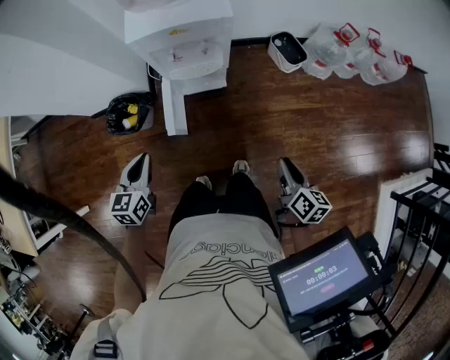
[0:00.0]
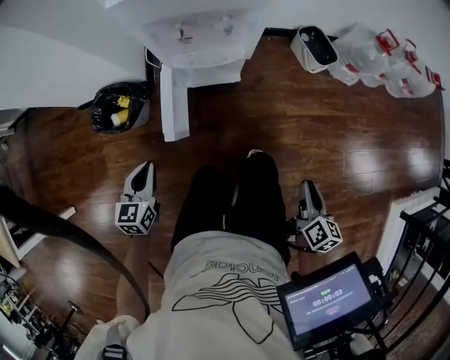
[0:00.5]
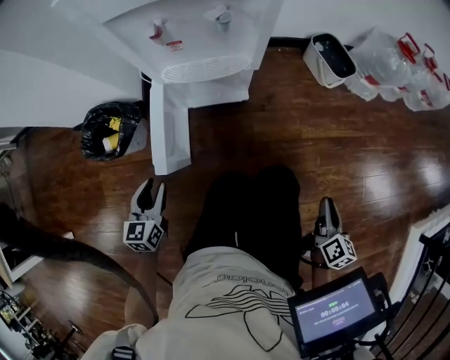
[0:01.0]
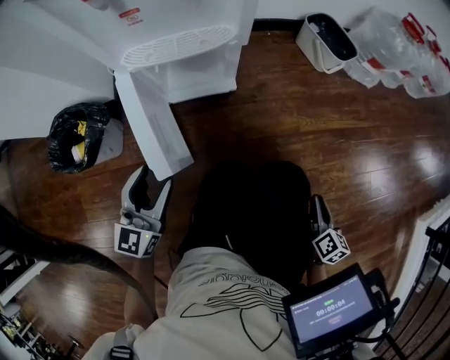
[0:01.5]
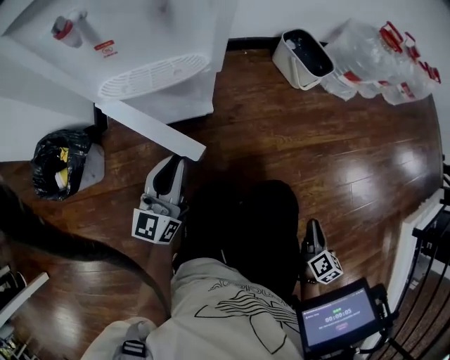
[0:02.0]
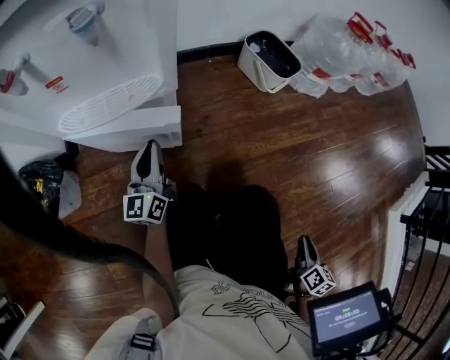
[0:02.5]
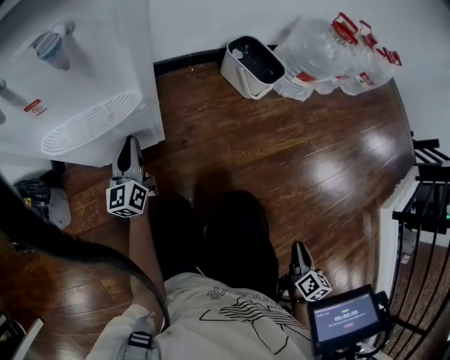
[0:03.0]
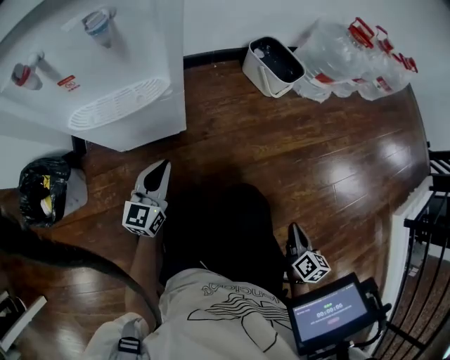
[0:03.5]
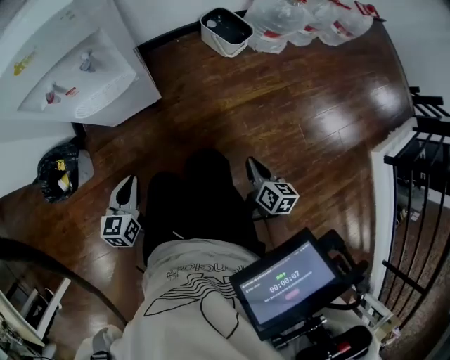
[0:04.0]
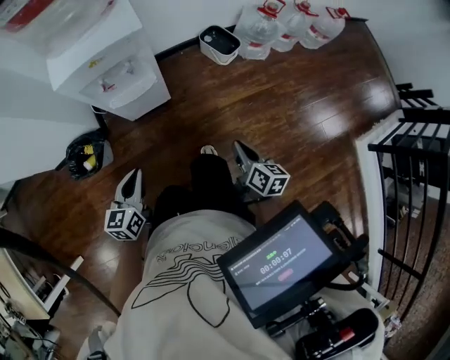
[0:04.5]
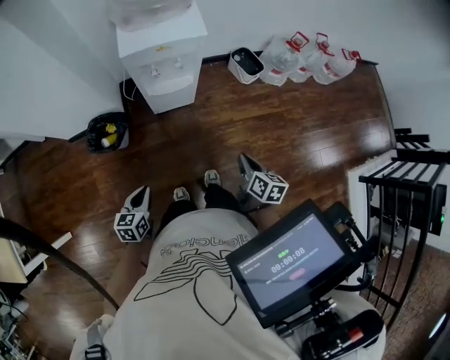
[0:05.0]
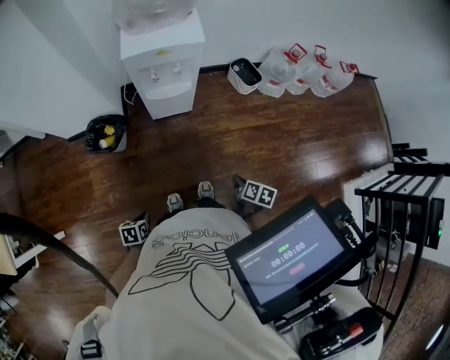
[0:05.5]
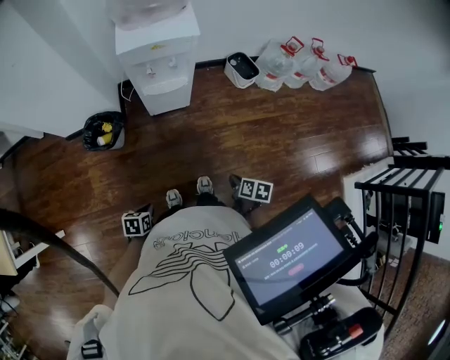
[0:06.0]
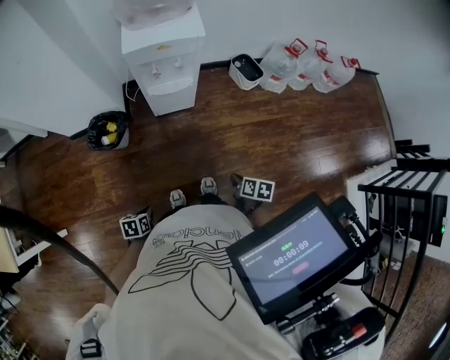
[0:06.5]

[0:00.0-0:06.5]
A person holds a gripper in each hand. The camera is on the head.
0:00.0 to 0:02.0: The left gripper shifts about 40 cm downward and forward, tips its fingers upward by roughly 30 degrees, and opens, then closes once more. Meanwhile the right gripper travels downward by approximately 40 cm, and rotates about 20 degrees.
0:02.0 to 0:04.5: The right gripper travels upward by about 40 cm, and closes. The left gripper heads upward and backward, covering about 35 cm, and turns by some 30 degrees.
0:04.5 to 0:06.5: The left gripper shifts roughly 30 cm backward and downward, and points its fingers about 40 degrees further downward. The right gripper travels backward and to the left by approximately 15 cm, and swivels some 30 degrees.

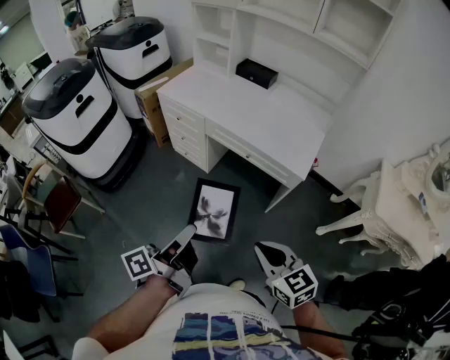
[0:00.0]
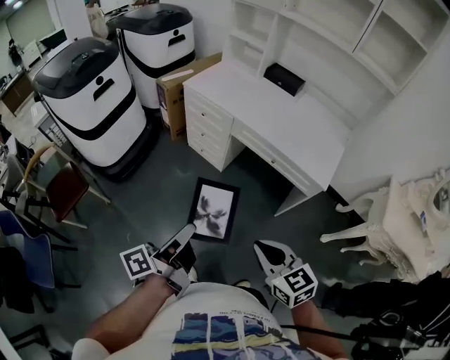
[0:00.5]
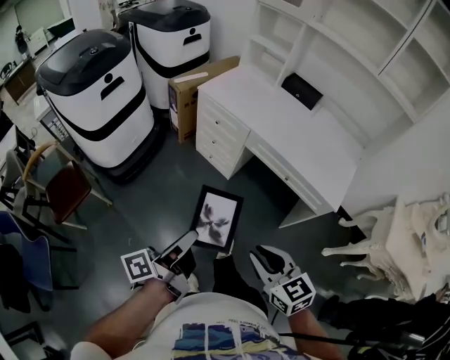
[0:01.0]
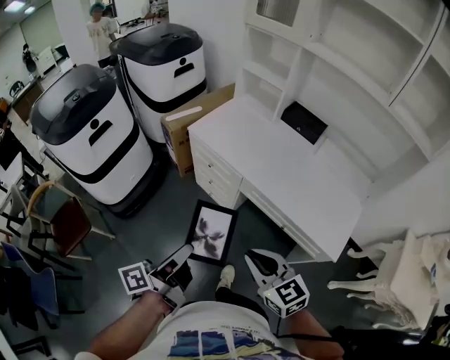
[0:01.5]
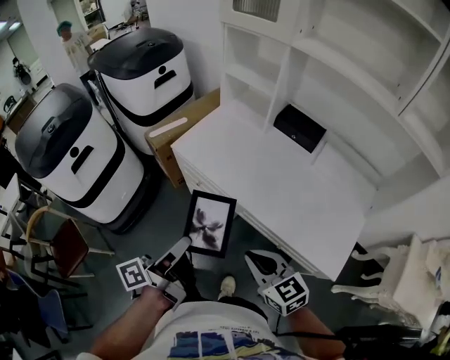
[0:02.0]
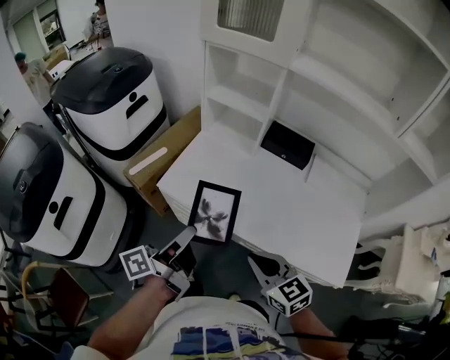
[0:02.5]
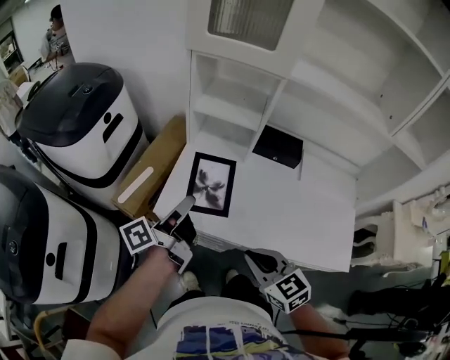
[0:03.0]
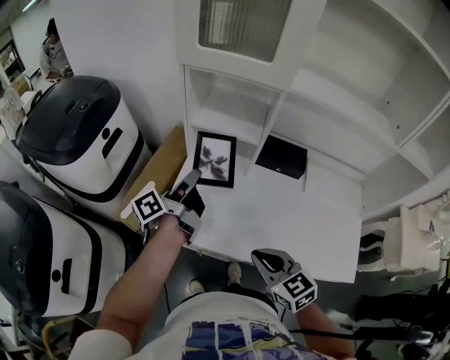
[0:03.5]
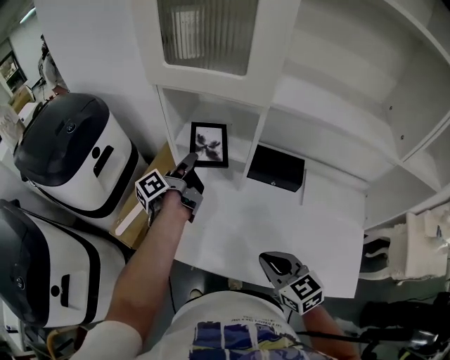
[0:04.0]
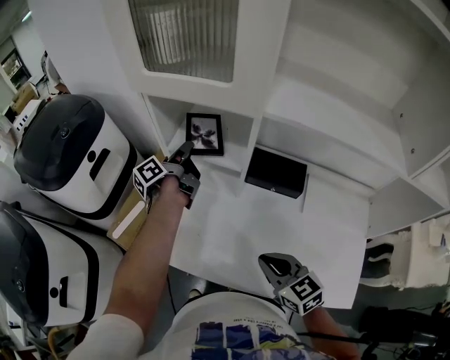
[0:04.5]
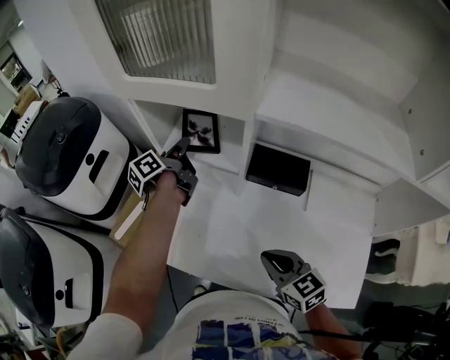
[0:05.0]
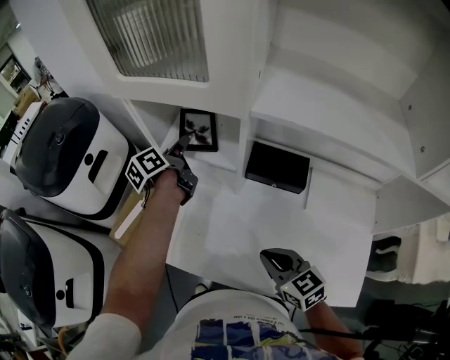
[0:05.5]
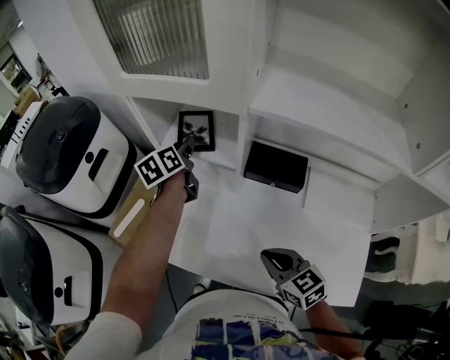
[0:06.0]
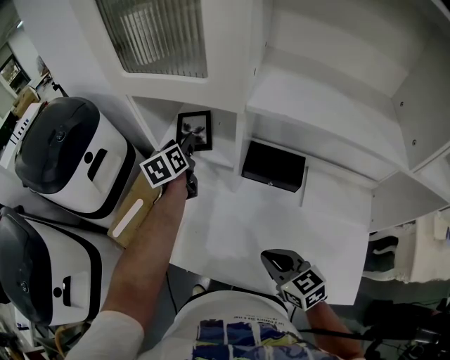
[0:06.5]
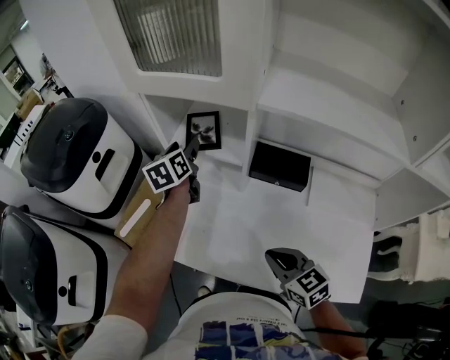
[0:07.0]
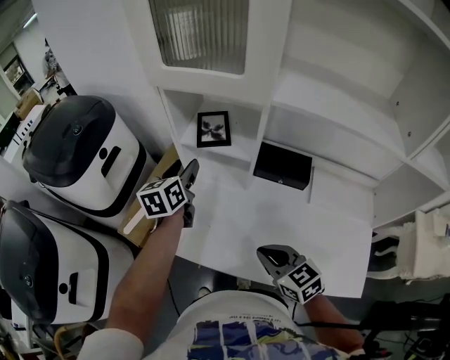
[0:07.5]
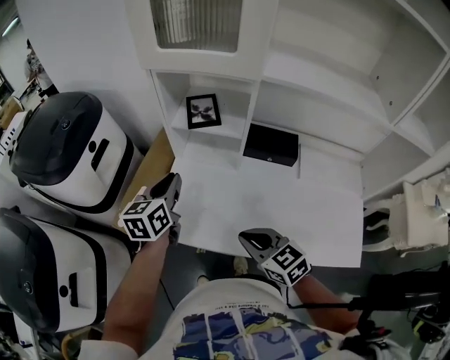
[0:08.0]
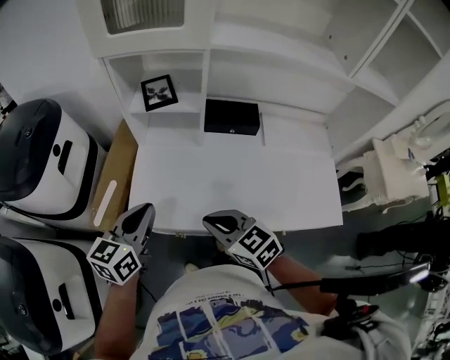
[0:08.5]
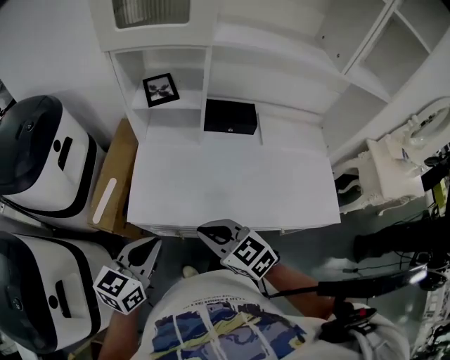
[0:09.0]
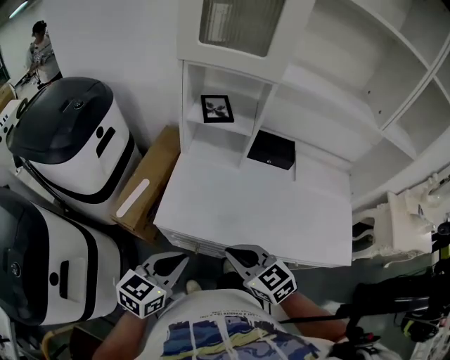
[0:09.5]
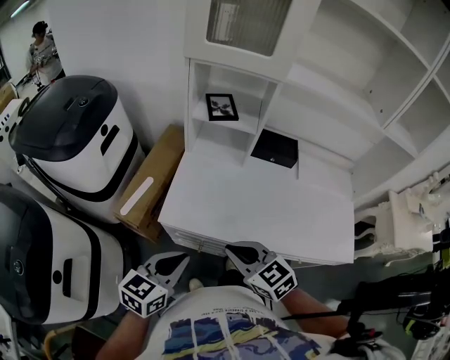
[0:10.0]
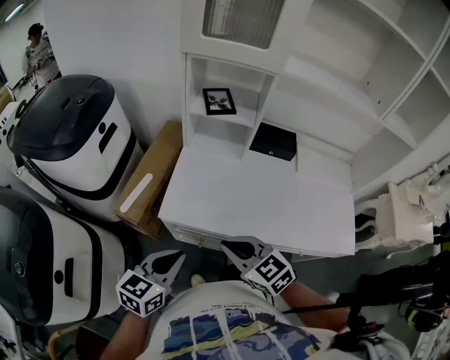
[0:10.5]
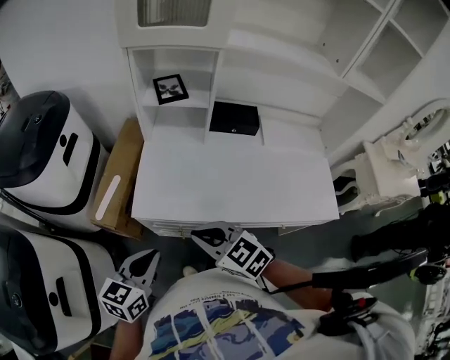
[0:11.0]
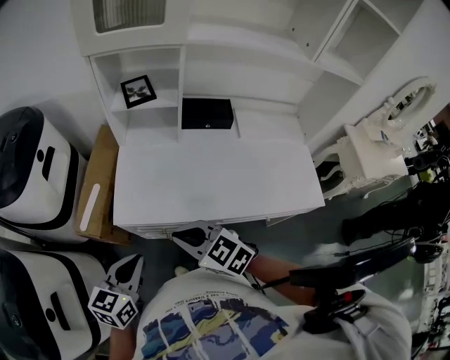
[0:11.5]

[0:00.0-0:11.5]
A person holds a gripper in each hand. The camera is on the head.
0:00.0 to 0:02.0: Both grippers move forward, some 40 cm.
0:02.0 to 0:04.0: The left gripper goes some 60 cm forward; the right gripper moves forward, approximately 30 cm, and rotates approximately 20 degrees.
0:04.0 to 0:06.0: The left gripper shifts some 10 cm forward, rolls clockwise, seen from behind, by about 40 degrees, and opens up; the right gripper goes roughly 5 cm to the right.
0:06.0 to 0:07.5: The left gripper shifts about 10 cm backward and to the left. Meanwhile the right gripper moves to the left, roughly 5 cm.
0:07.5 to 0:09.5: The left gripper travels backward by about 35 cm, changes its angle by roughly 40 degrees, and closes its fingers, while the right gripper heads to the left and backward, covering approximately 20 cm.
0:09.5 to 0:11.5: The grippers stay close to where they were, moving slightly.

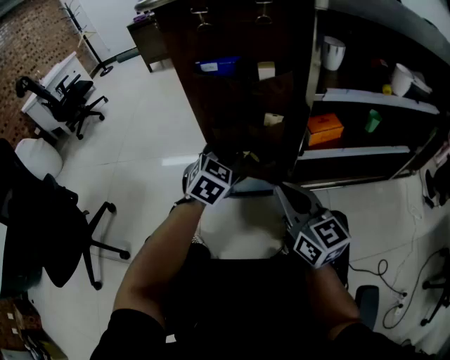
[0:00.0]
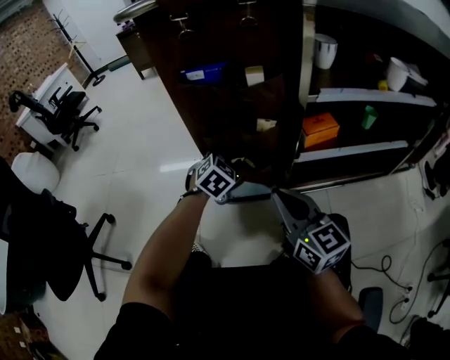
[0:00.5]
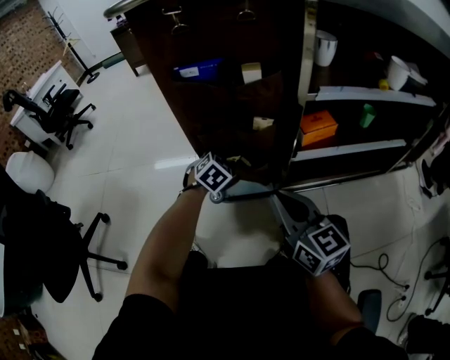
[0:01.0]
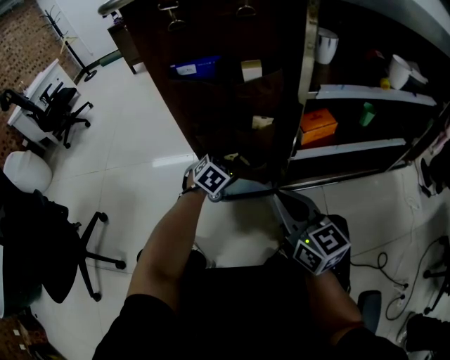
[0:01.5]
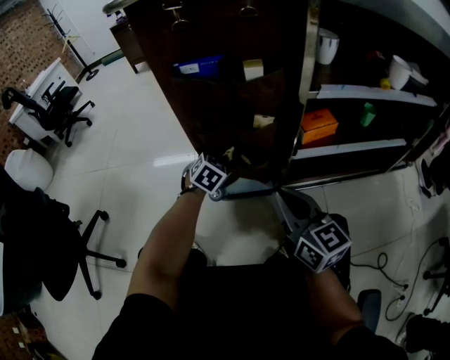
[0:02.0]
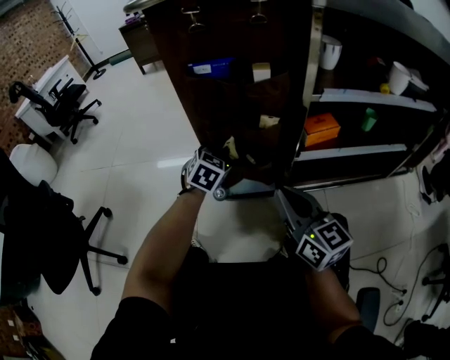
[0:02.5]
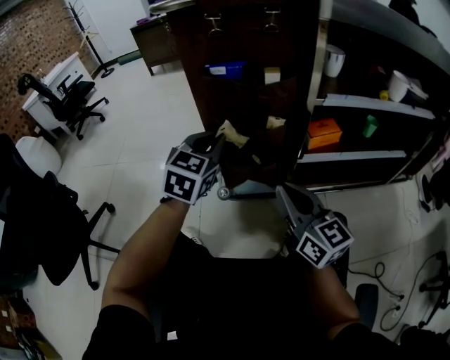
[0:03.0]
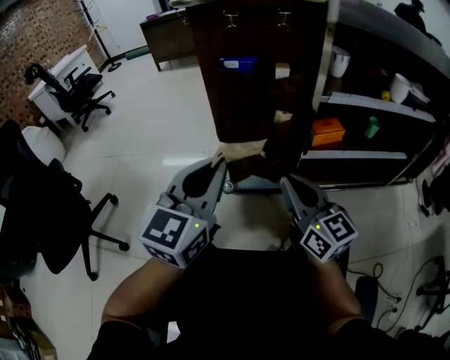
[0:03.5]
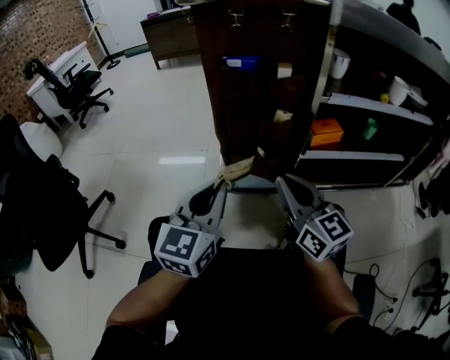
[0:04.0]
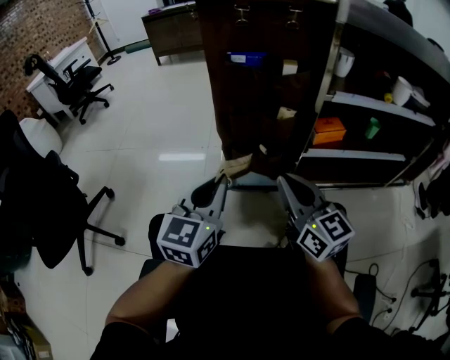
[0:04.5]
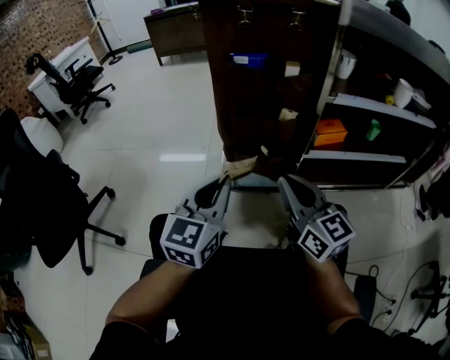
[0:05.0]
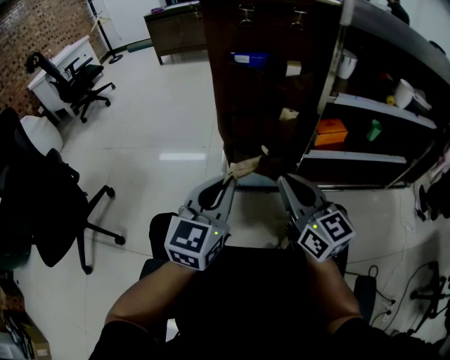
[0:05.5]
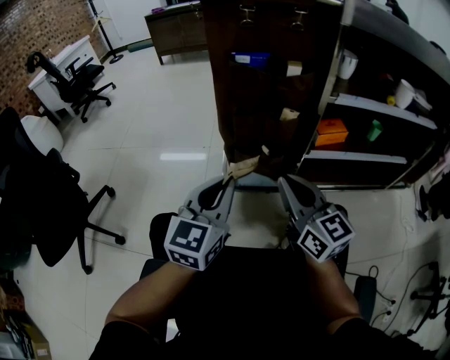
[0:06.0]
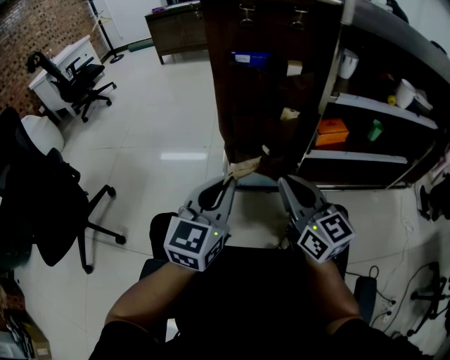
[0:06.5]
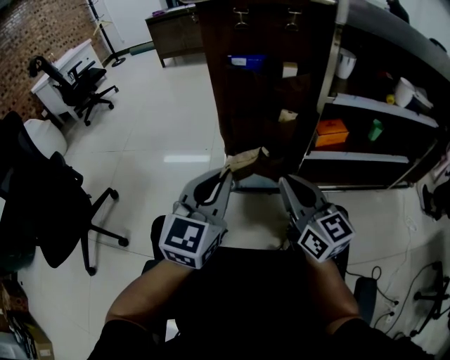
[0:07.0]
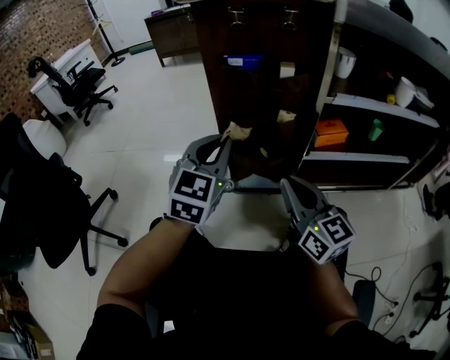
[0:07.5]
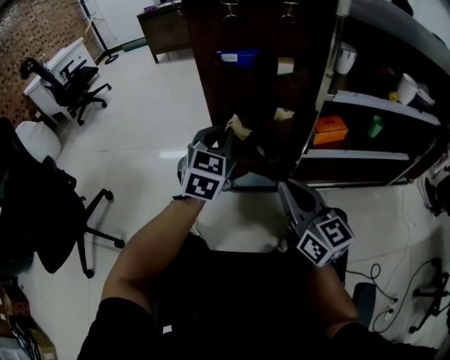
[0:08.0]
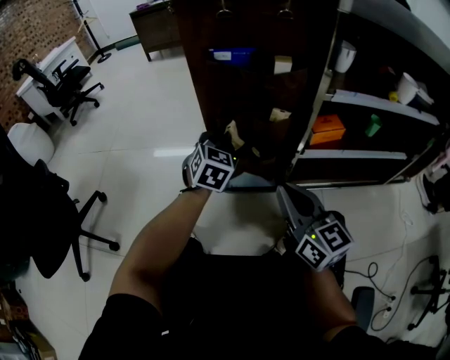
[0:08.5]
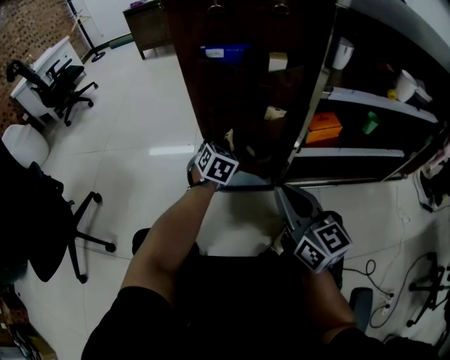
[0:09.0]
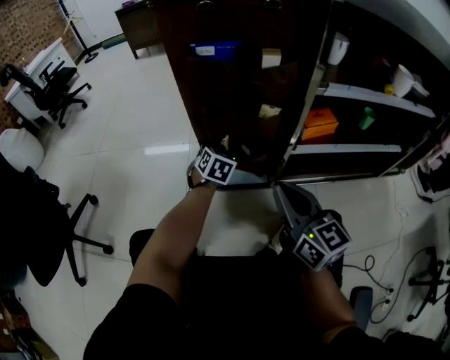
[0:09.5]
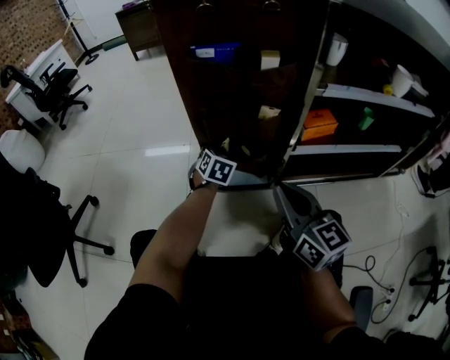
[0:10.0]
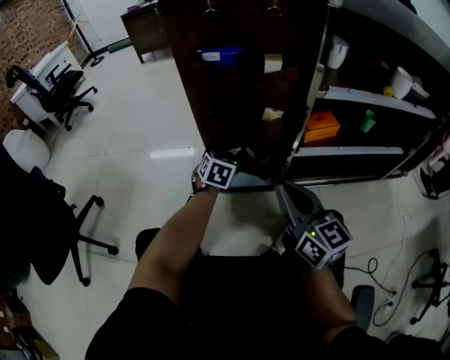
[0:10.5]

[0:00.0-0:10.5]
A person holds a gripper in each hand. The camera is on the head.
0:00.0 to 0:02.0: The left gripper goes about 15 cm downward and forward, and closes.
0:02.0 to 0:04.0: The right gripper goes about 5 cm upward. The left gripper goes some 35 cm backward and upward, and tips its fingers upward by about 40 degrees.
0:04.0 to 0:06.5: The grippers make only small movements.
0:06.5 to 0:08.5: The left gripper heads forward and downward, covering some 25 cm, and swivels about 30 degrees.
0:08.5 to 0:10.5: The left gripper moves downward, some 15 cm, and opens its fingers.
